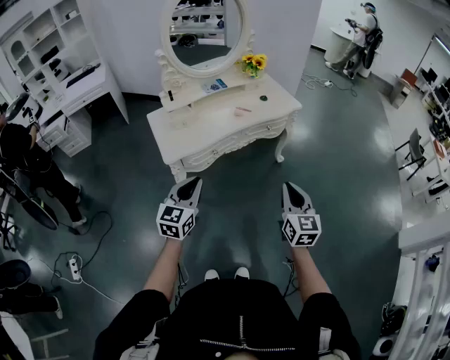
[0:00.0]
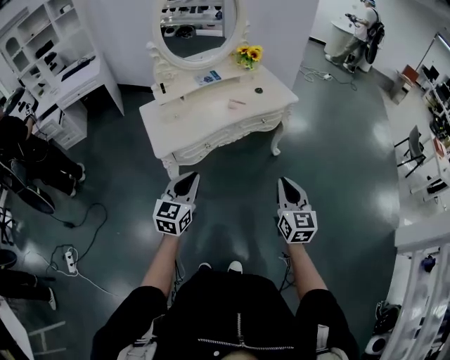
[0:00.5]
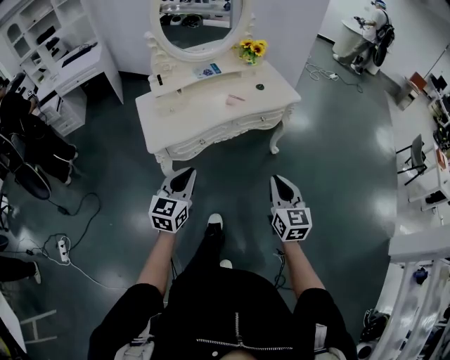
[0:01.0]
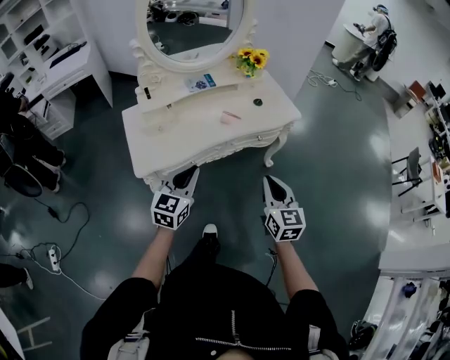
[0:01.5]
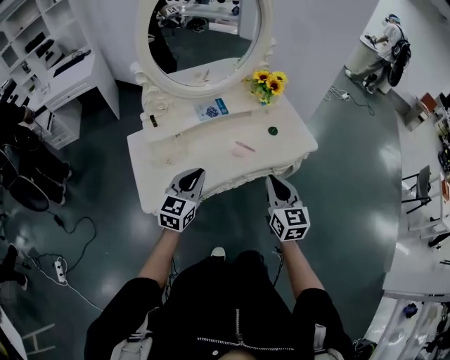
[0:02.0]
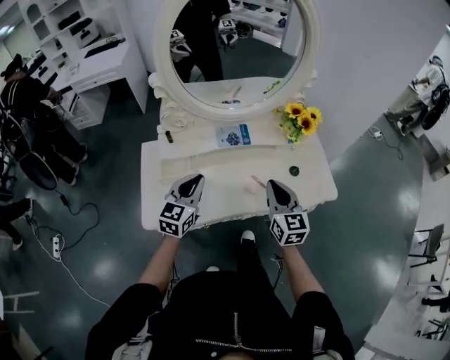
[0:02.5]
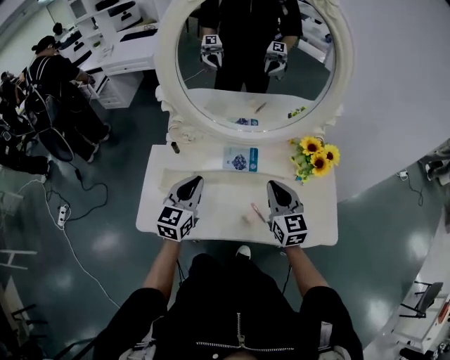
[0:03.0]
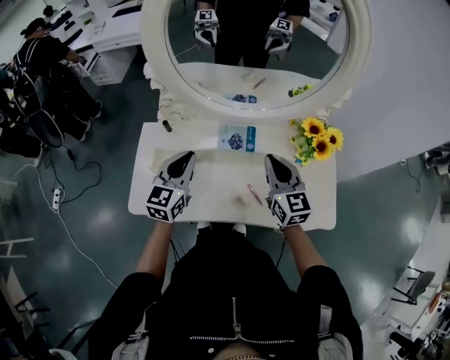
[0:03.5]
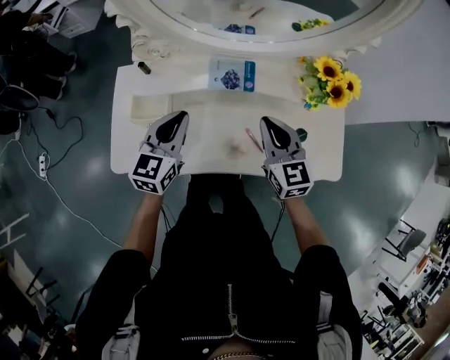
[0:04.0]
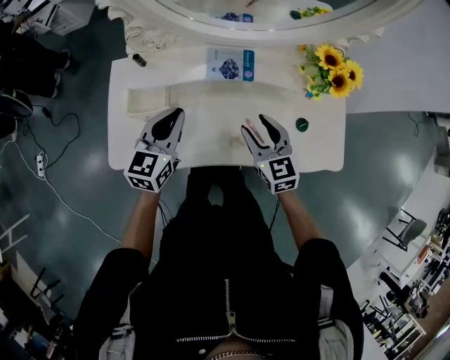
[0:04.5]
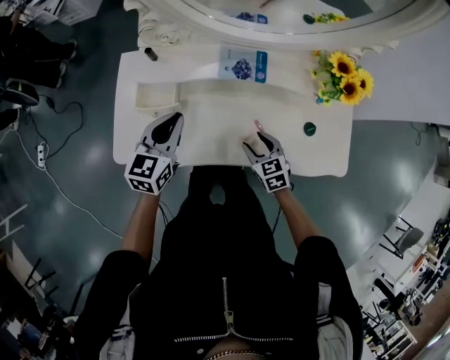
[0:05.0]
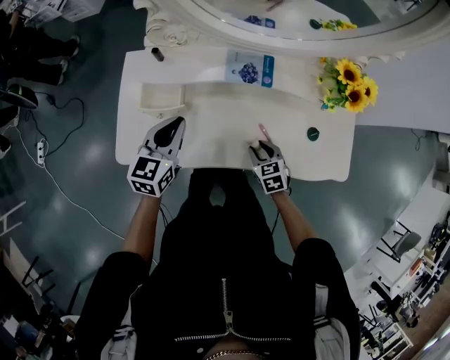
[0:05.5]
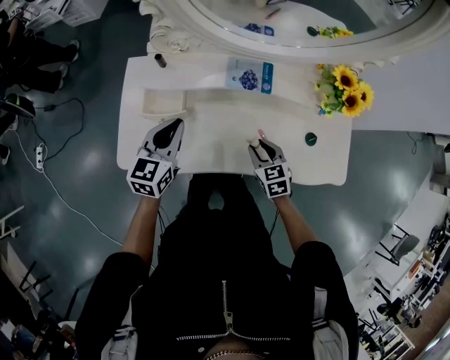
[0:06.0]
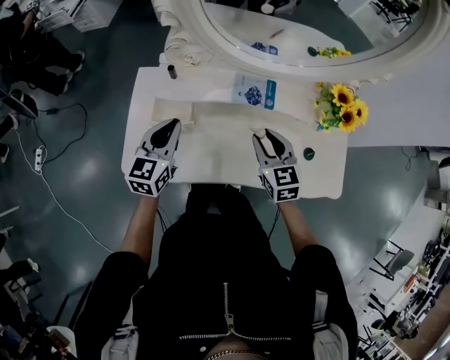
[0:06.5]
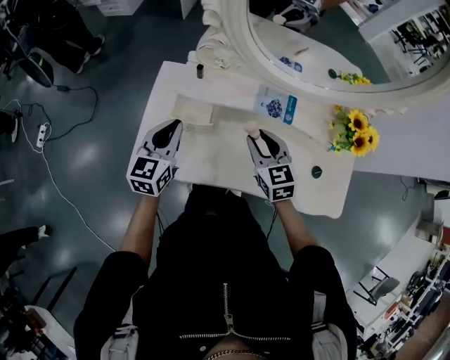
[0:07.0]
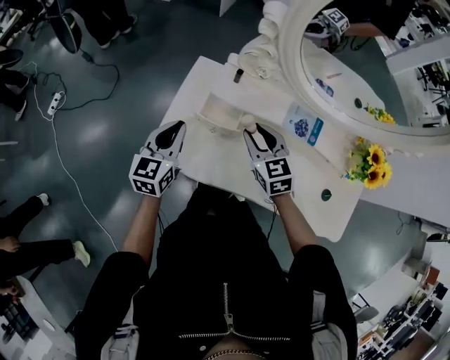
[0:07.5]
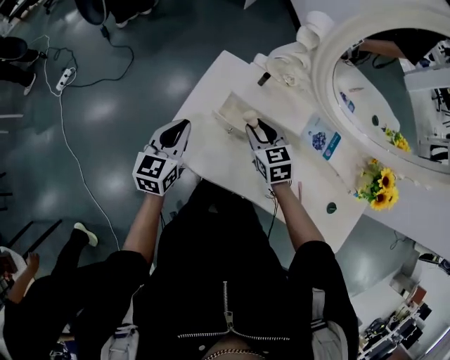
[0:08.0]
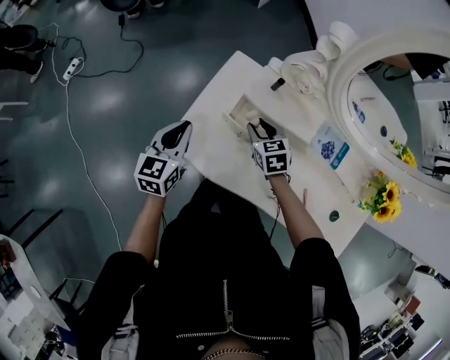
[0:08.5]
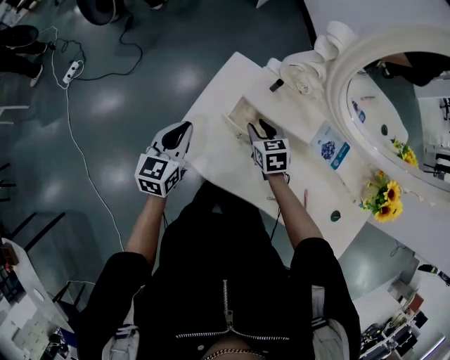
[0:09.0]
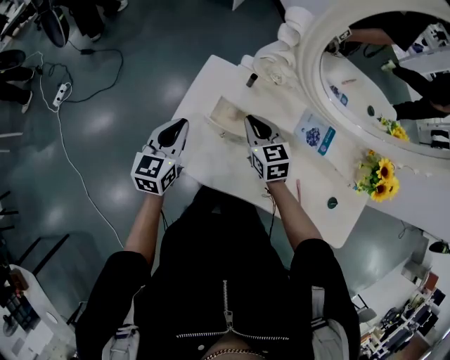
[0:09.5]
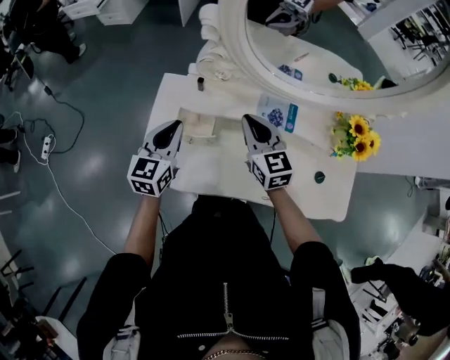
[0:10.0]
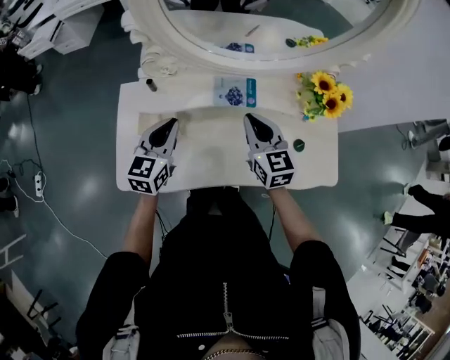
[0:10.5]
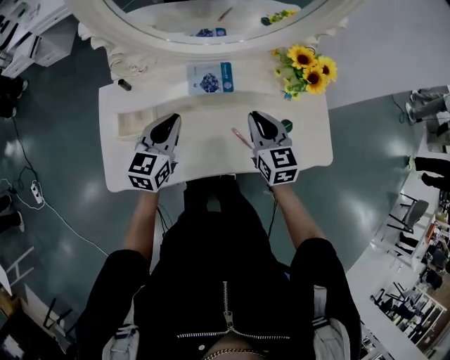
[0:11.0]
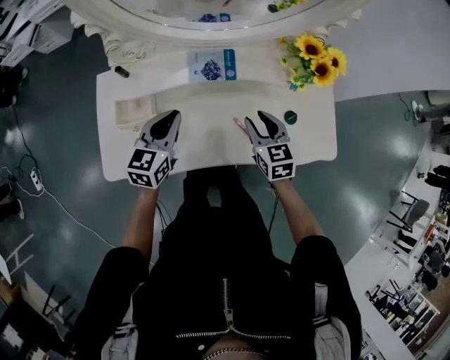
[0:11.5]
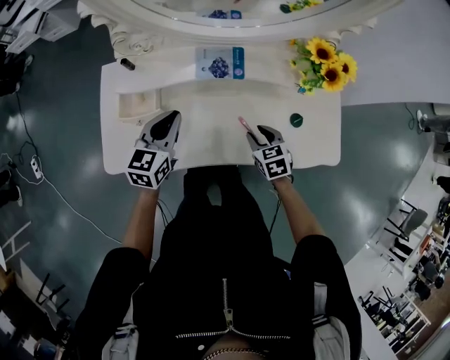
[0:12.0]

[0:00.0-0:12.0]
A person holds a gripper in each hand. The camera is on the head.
0:00.0 to 0:02.0: The two grippers go about 40 cm forward.
0:02.0 to 0:04.0: The left gripper changes place by approximately 20 cm, and turns by some 30 degrees. Meanwhile the right gripper ends up roughly 30 cm from where it was, and turns by approximately 30 degrees.
0:04.0 to 0:06.0: The left gripper heads to the left, covering some 5 cm; the right gripper moves downward, approximately 20 cm, turns by some 30 degrees, and opens.
0:06.0 to 0:08.0: The right gripper shifts by about 30 cm, and turns by roughly 30 degrees, while the left gripper moves roughly 20 cm, and swivels about 30 degrees.
0:08.0 to 0:10.0: The right gripper travels upward and to the right by about 15 cm, changes its angle by roughly 30 degrees, and closes its fingers. The left gripper shifts roughly 15 cm to the right and upward.
0:10.0 to 0:12.0: The right gripper is displaced to the right, downward and backward by some 35 cm, tips its fingers downward by approximately 30 degrees, and opens its fingers; the left gripper moves to the right, some 20 cm.

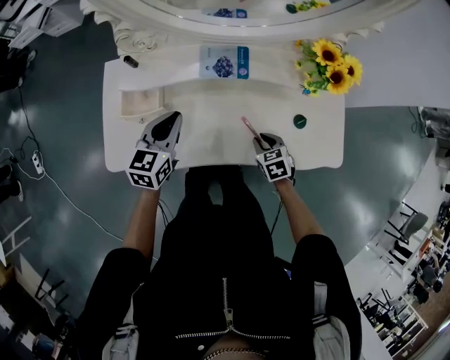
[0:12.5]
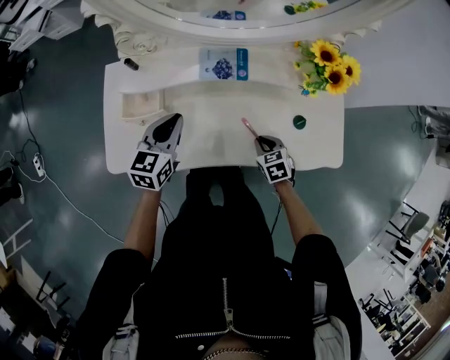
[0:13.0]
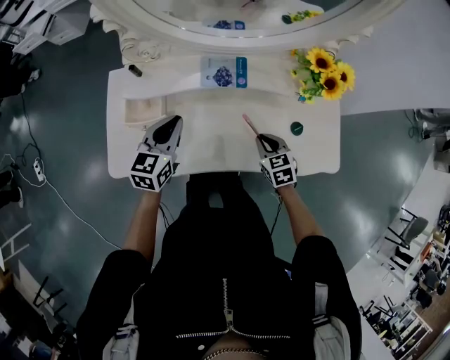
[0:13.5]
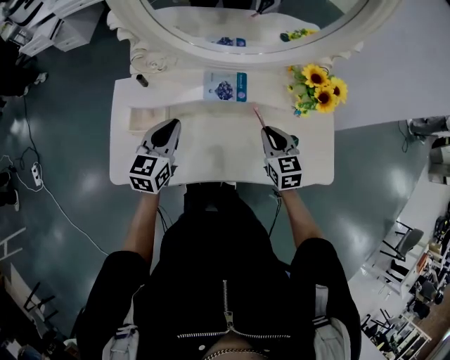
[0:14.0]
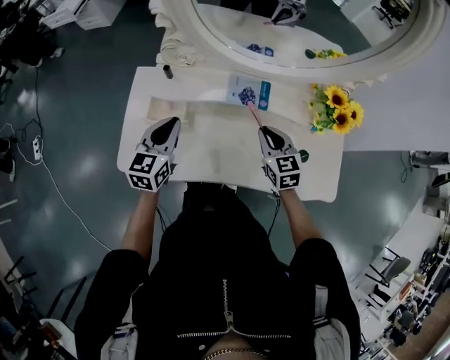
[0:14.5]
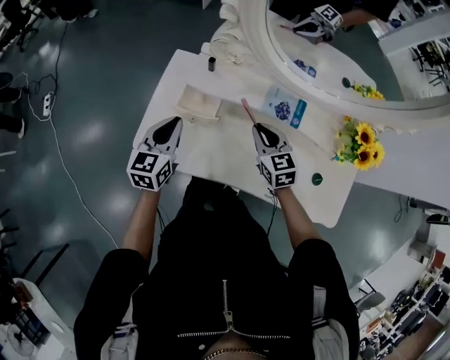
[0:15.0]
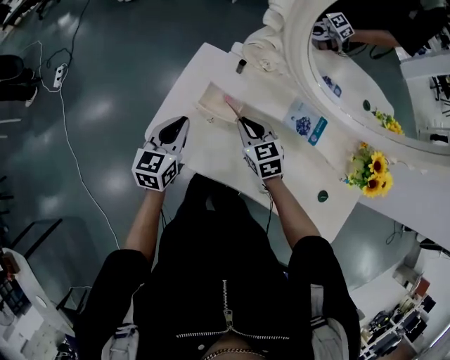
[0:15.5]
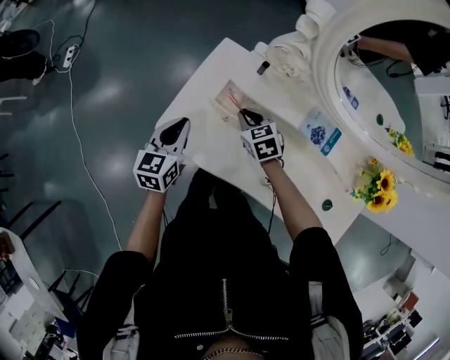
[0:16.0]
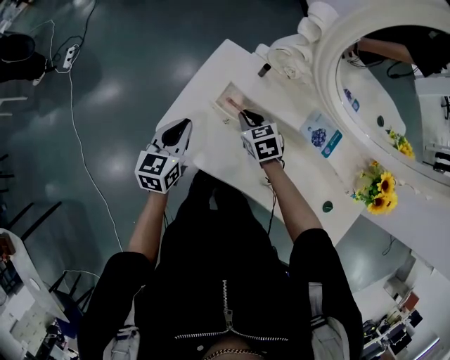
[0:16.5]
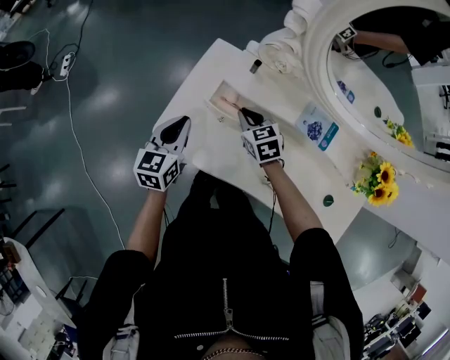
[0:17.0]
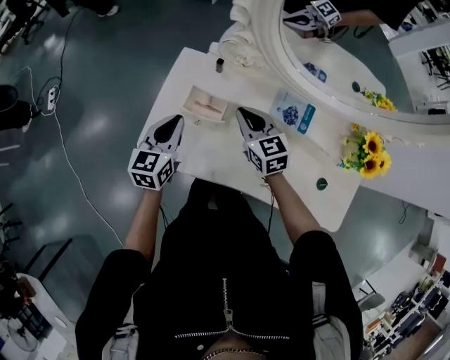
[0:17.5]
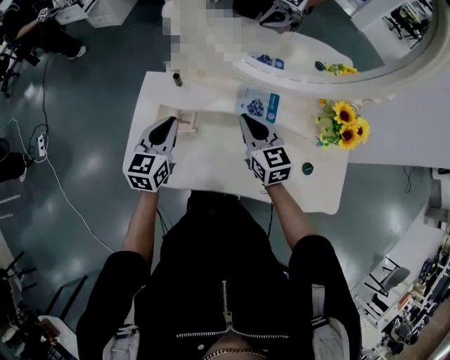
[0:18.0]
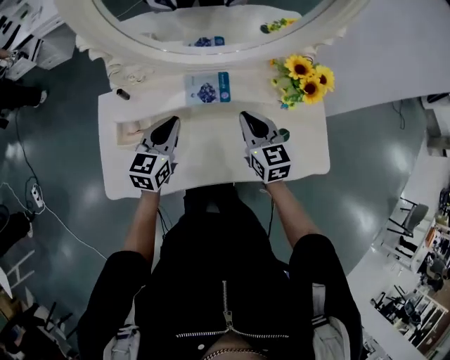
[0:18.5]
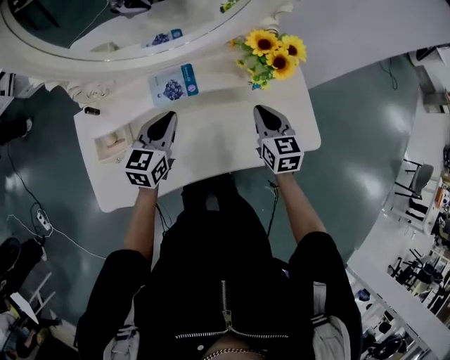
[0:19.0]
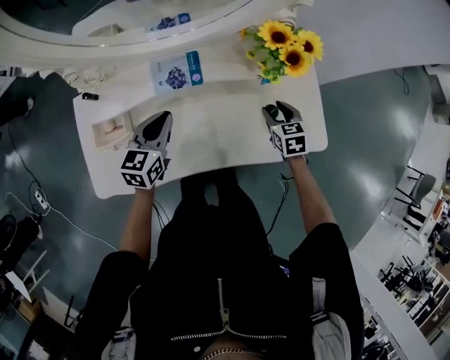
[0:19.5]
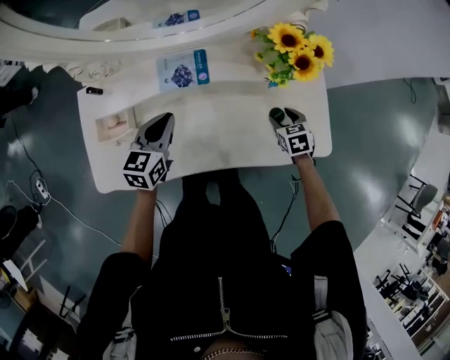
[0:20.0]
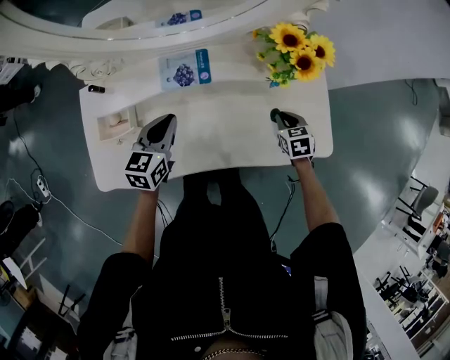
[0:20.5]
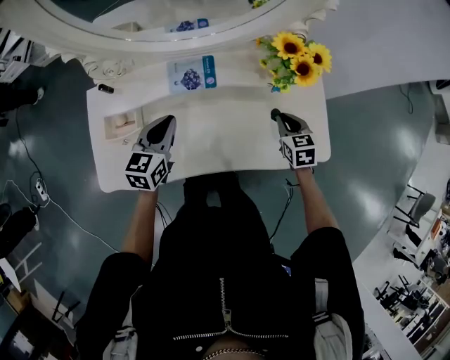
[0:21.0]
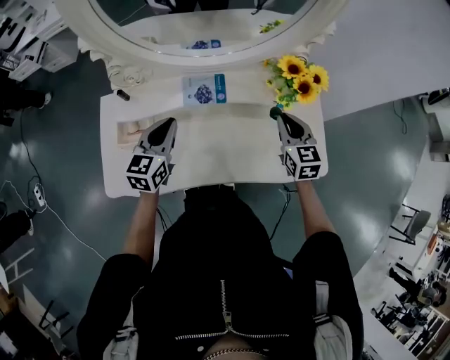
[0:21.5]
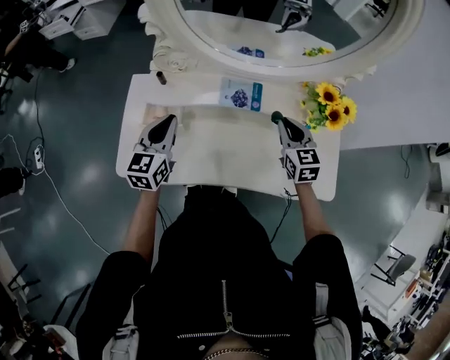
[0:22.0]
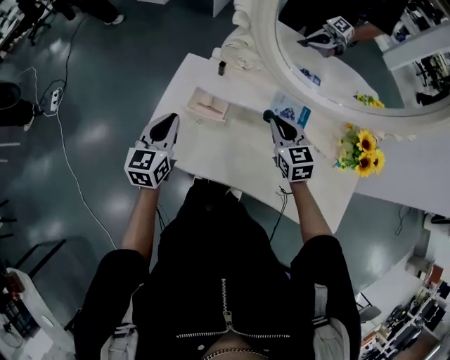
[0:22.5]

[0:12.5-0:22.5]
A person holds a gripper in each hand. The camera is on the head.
0:12.5 to 0:14.5: The left gripper heads to the left, covering approximately 10 cm. Meanwhile the right gripper is displaced upward, forward and to the left by approximately 20 cm, and swivels roughly 30 degrees.
0:14.5 to 0:16.5: The right gripper ends up about 30 cm from where it was, and changes its angle by some 40 degrees. The left gripper moves about 20 cm, and turns by some 30 degrees.
0:16.5 to 0:18.5: The left gripper shifts by approximately 30 cm, and swivels about 40 degrees; the right gripper changes place by approximately 35 cm, and rotates roughly 50 degrees.
0:18.5 to 0:20.5: The left gripper travels to the right and downward by some 10 cm. The right gripper heads to the right and downward, covering some 30 cm, angles its fingers downward, by some 30 degrees, and opens and closes again.
0:20.5 to 0:22.5: The left gripper ends up about 30 cm from where it was, and turns by some 40 degrees. Meanwhile the right gripper changes place by some 40 cm, and swivels roughly 40 degrees.

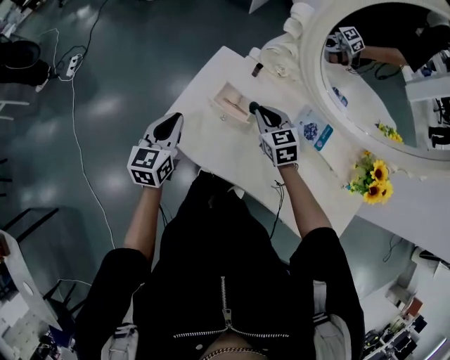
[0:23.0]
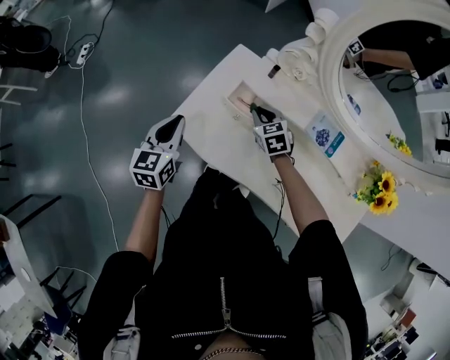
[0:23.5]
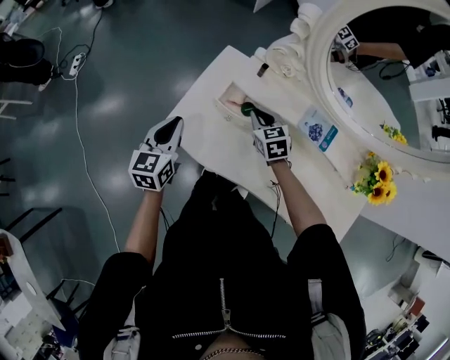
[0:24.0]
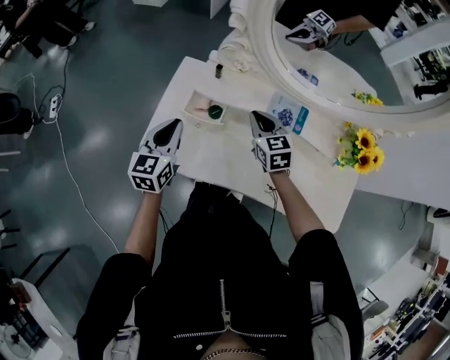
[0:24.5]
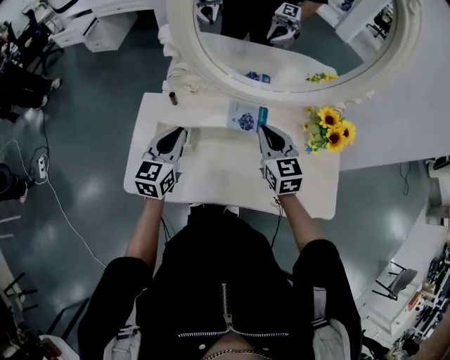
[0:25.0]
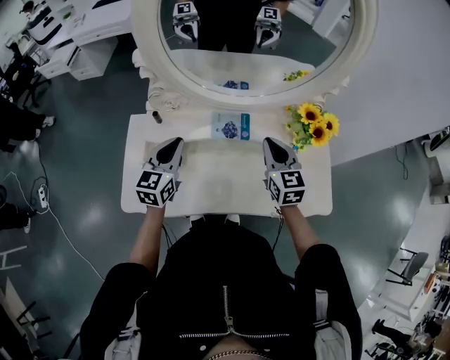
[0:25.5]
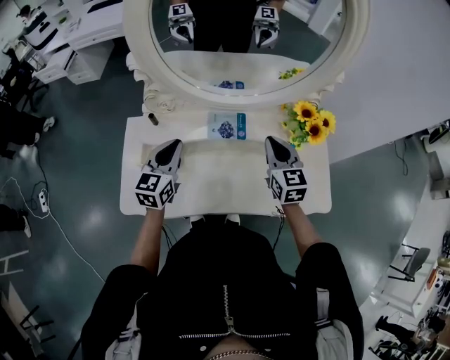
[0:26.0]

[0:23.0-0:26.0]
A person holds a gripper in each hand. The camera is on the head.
0:23.0 to 0:24.5: Both grippers travel together to the right, approximately 10 cm.
0:24.5 to 0:26.0: The left gripper shifts about 20 cm to the right and forward, and turns by roughly 20 degrees. The right gripper heads to the right, covering approximately 25 cm, and swivels some 30 degrees.

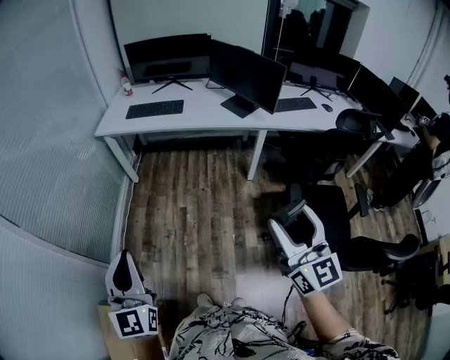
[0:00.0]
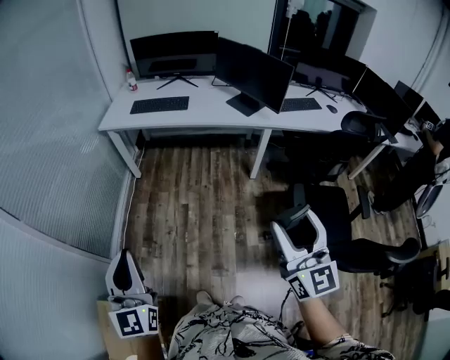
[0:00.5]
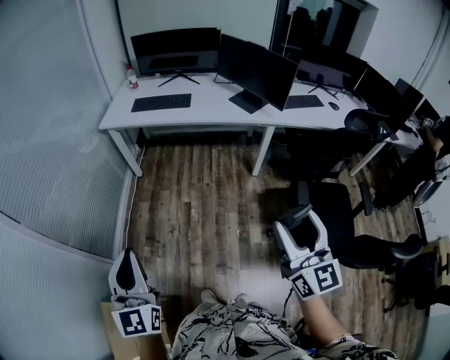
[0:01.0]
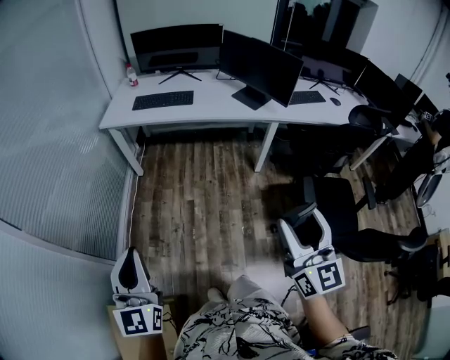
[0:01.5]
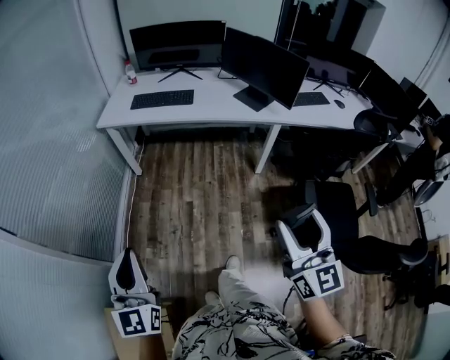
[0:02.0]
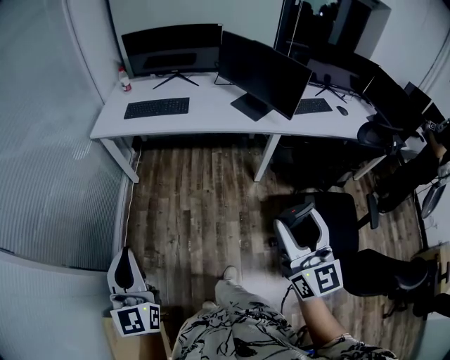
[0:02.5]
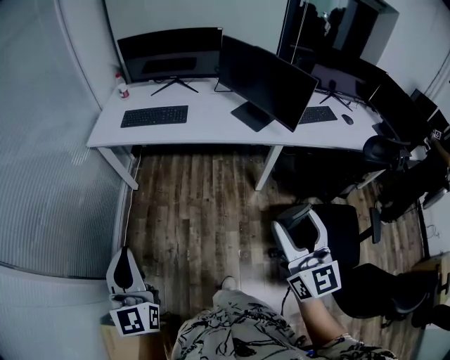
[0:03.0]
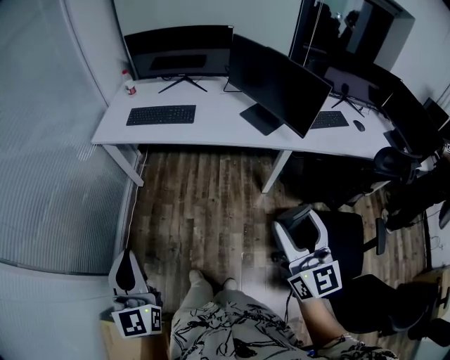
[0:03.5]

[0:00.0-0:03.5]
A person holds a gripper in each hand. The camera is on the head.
0:00.0 to 0:02.0: Both grippers travel together forward and to the left, about 10 cm.
0:02.0 to 0:03.5: Both grippers move forward and to the right, approximately 20 cm.
